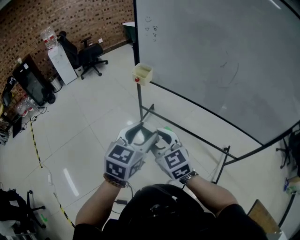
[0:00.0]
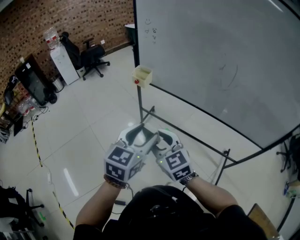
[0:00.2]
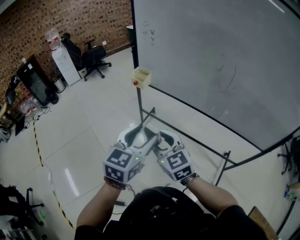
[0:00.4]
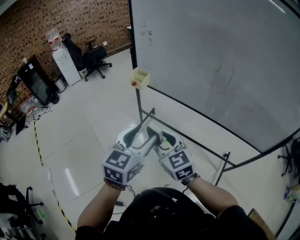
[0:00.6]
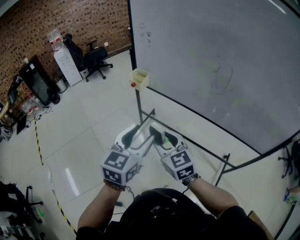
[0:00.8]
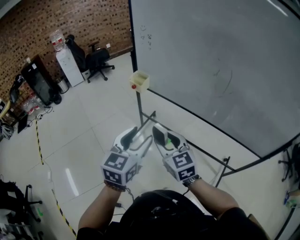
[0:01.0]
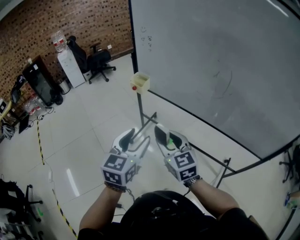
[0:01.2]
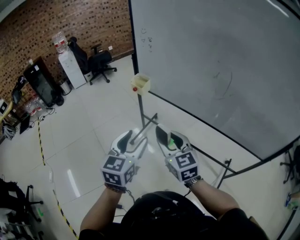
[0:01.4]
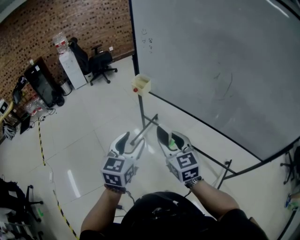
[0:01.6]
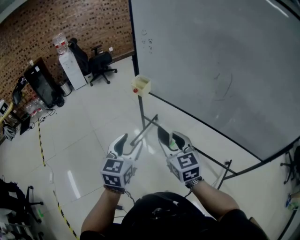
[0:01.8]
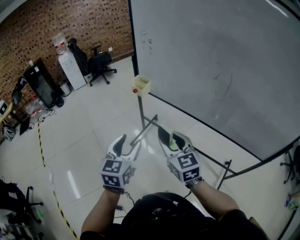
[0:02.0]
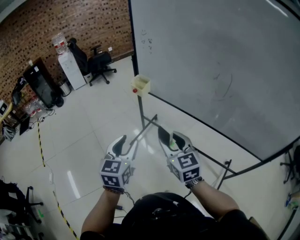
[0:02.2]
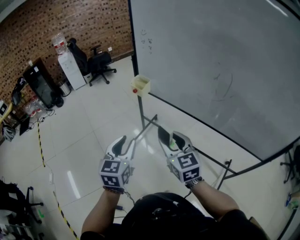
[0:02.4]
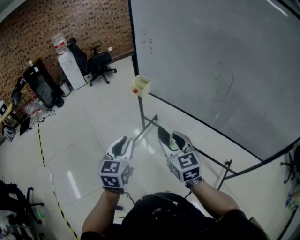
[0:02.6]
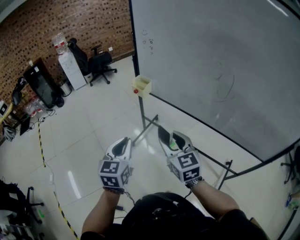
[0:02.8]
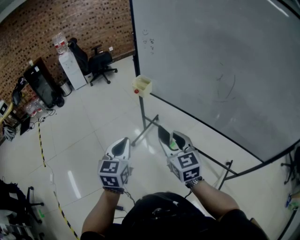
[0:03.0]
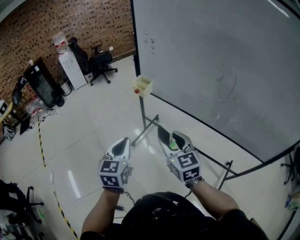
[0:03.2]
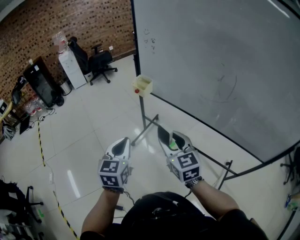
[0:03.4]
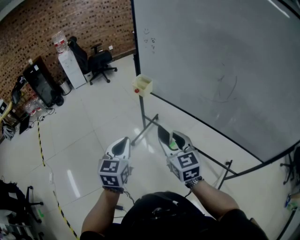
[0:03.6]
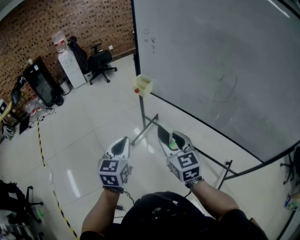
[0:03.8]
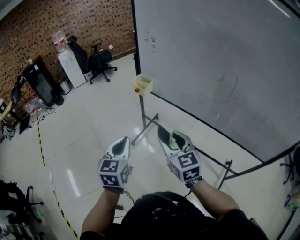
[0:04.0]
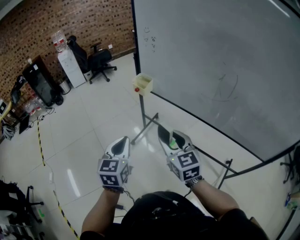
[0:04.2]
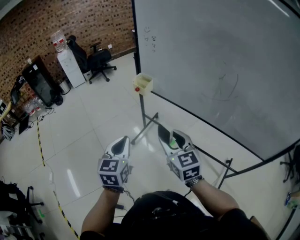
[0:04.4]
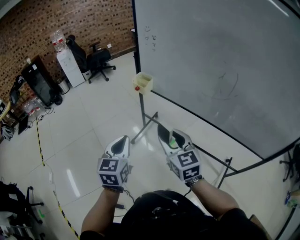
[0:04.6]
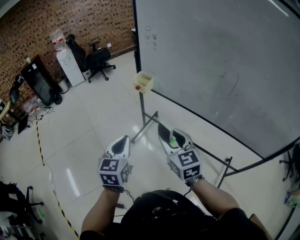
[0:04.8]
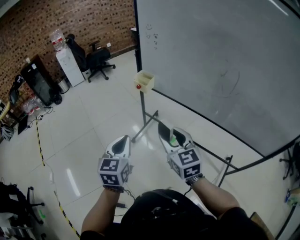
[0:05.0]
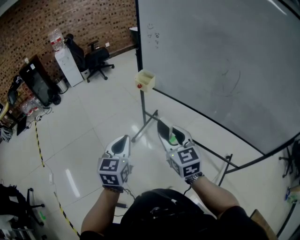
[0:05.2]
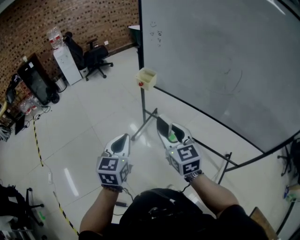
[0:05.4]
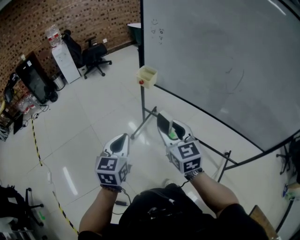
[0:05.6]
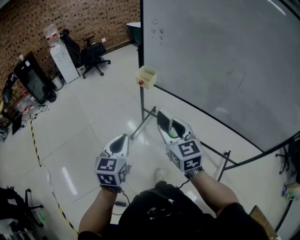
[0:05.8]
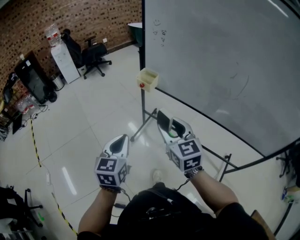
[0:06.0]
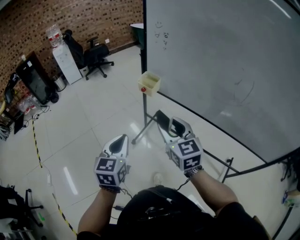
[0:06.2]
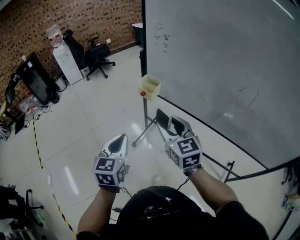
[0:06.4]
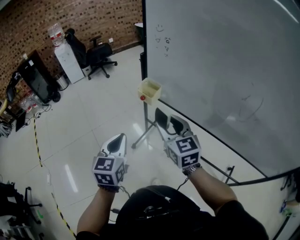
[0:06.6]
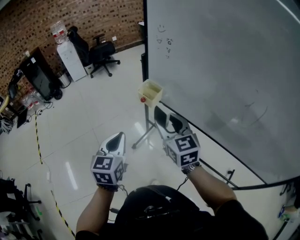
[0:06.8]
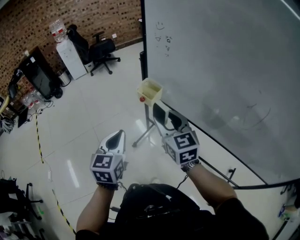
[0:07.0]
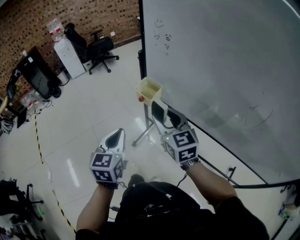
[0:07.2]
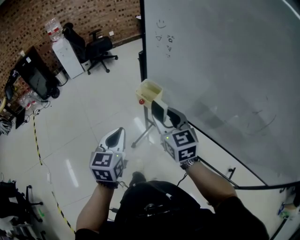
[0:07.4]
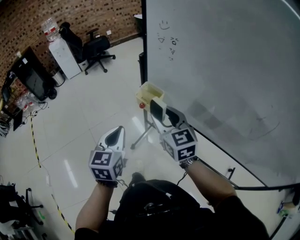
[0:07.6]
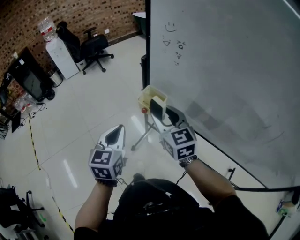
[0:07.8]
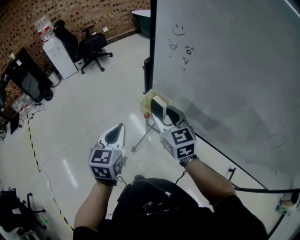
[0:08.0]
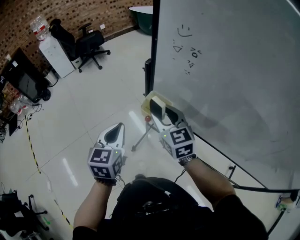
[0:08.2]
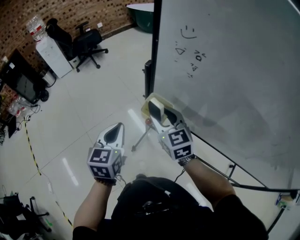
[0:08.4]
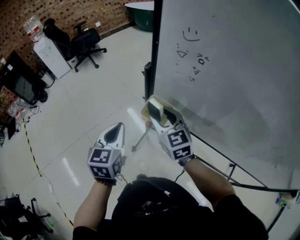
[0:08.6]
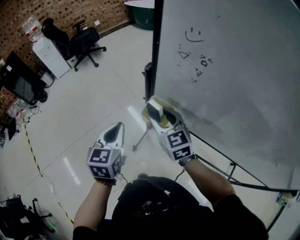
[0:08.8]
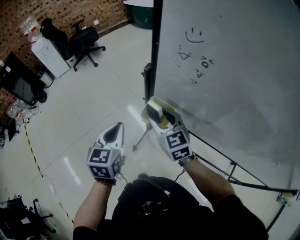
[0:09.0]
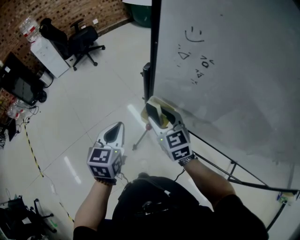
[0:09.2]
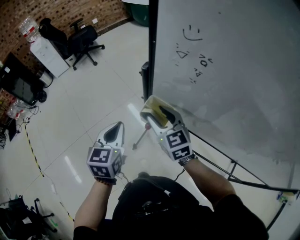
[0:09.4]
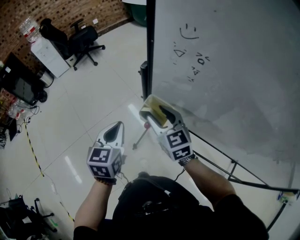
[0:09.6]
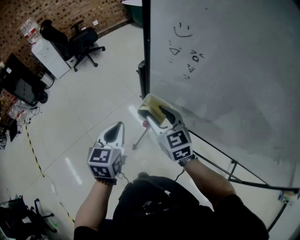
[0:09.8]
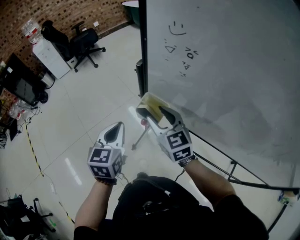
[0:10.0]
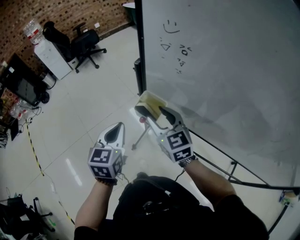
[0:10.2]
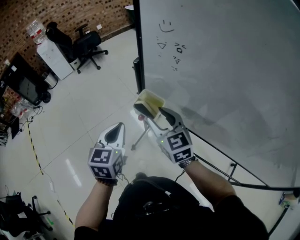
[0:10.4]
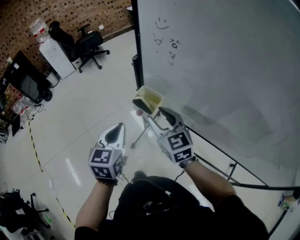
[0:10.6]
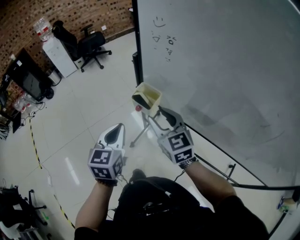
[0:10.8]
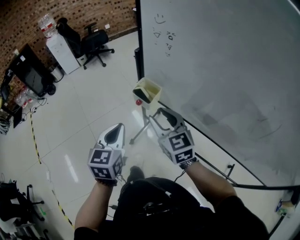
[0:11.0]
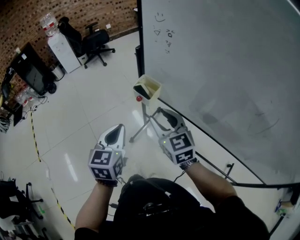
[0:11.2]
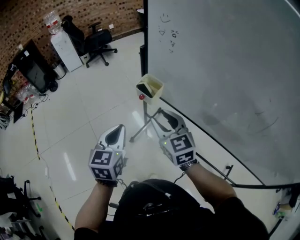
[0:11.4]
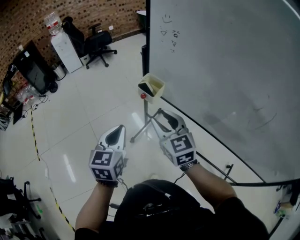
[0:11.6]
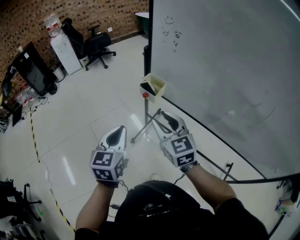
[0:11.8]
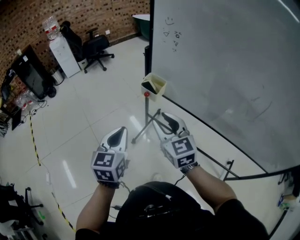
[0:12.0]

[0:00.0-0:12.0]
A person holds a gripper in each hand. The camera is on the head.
0:00.0 to 0:01.6: The right gripper moves to the right, some 10 cm.
0:01.6 to 0:03.0: The left gripper shifts by about 5 cm, and closes its fingers.
0:03.0 to 0:04.4: The grippers stay close to where they were, moving slightly.
0:04.4 to 0:06.0: The left gripper is displaced to the left by some 5 cm; the right gripper shifts approximately 10 cm forward and to the left.
0:06.0 to 0:07.6: Both grippers travel together forward, some 25 cm.
0:07.6 to 0:09.0: The left gripper heads forward, covering roughly 15 cm; the right gripper travels forward and downward by approximately 20 cm.
0:09.0 to 0:10.4: The grippers both shift backward by about 5 cm.
0:10.4 to 0:12.0: Both grippers travel together backward, approximately 20 cm.

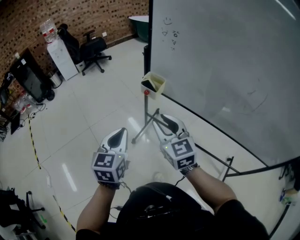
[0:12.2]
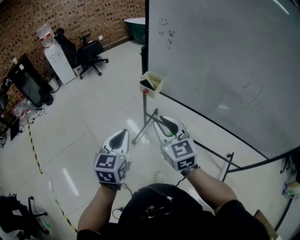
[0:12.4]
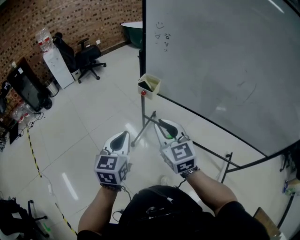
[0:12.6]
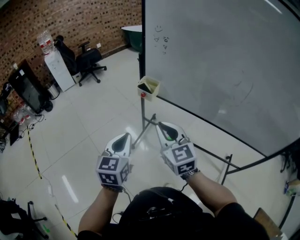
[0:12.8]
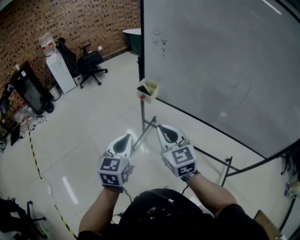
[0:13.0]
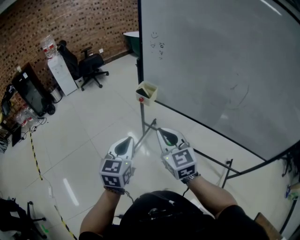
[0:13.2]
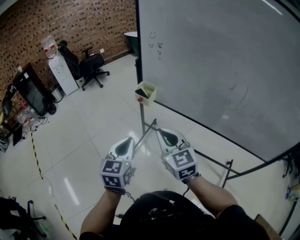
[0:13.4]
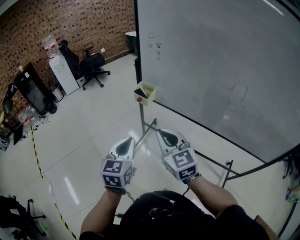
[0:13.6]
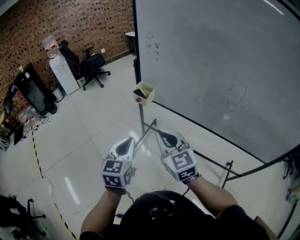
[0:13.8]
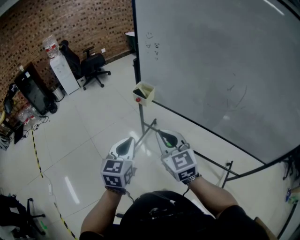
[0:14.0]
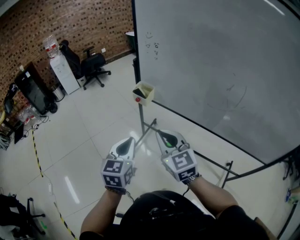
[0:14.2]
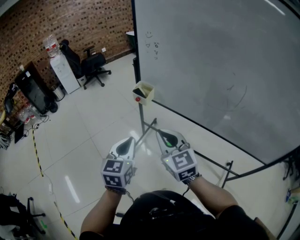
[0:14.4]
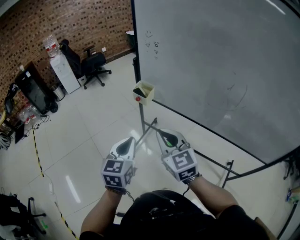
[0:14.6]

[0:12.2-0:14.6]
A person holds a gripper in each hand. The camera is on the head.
0:12.2 to 0:13.4: The left gripper travels backward and to the right by approximately 10 cm, while the right gripper is displaced backward by roughly 10 cm, and closes its fingers.
0:13.4 to 0:14.6: The grippers move only a little.

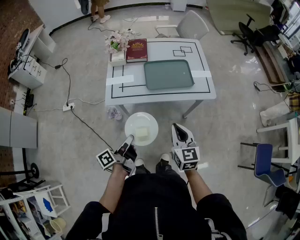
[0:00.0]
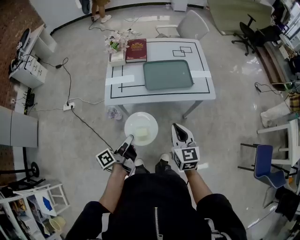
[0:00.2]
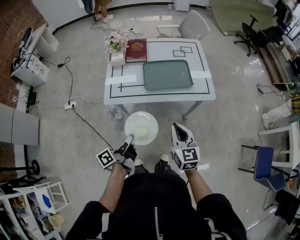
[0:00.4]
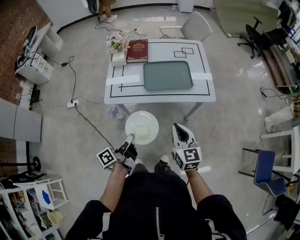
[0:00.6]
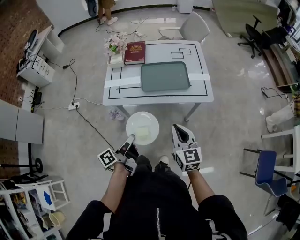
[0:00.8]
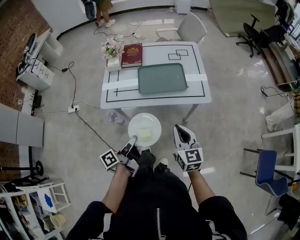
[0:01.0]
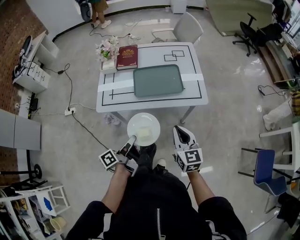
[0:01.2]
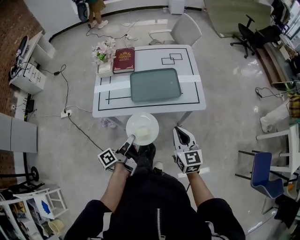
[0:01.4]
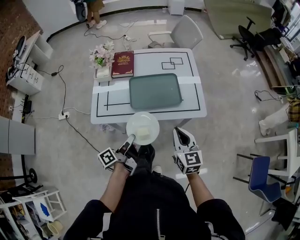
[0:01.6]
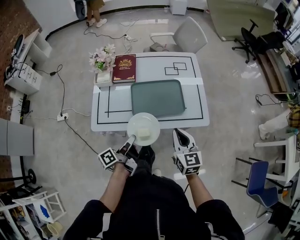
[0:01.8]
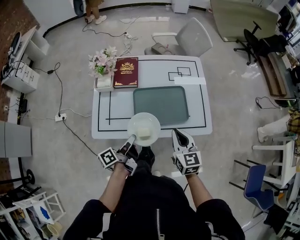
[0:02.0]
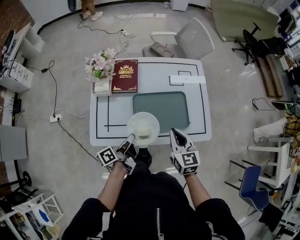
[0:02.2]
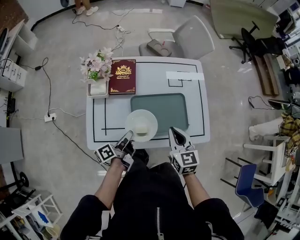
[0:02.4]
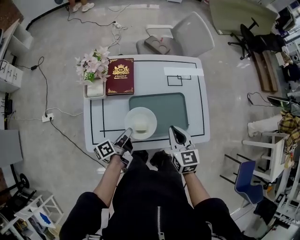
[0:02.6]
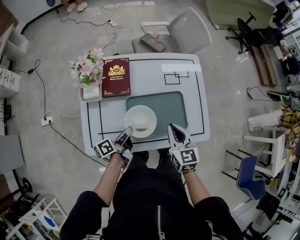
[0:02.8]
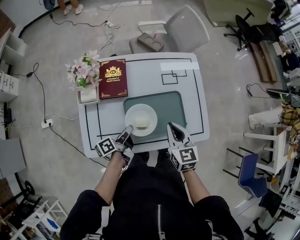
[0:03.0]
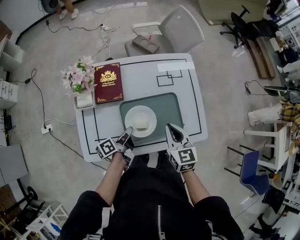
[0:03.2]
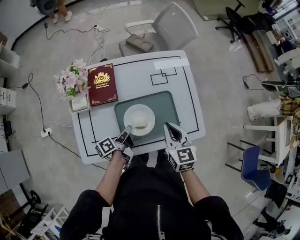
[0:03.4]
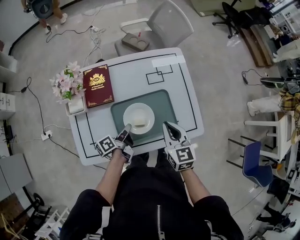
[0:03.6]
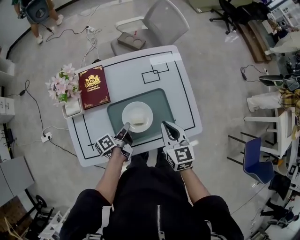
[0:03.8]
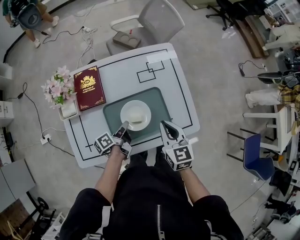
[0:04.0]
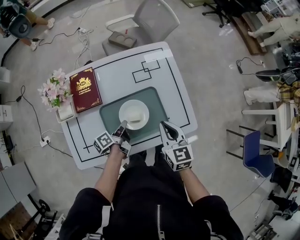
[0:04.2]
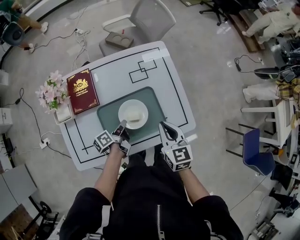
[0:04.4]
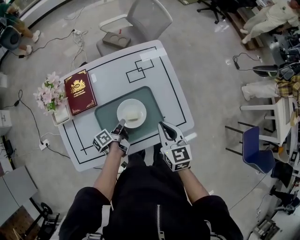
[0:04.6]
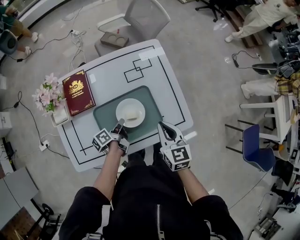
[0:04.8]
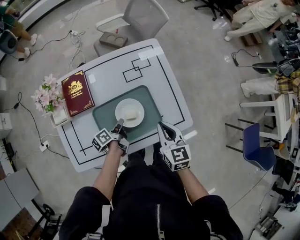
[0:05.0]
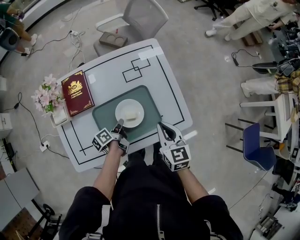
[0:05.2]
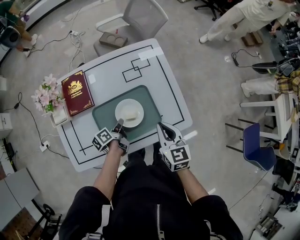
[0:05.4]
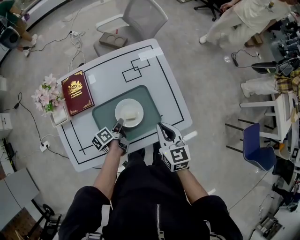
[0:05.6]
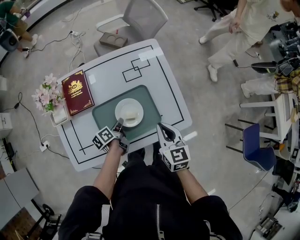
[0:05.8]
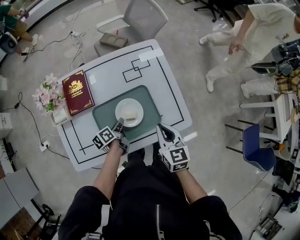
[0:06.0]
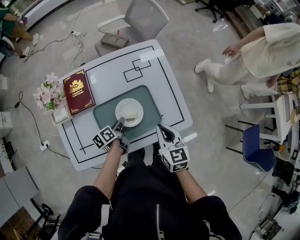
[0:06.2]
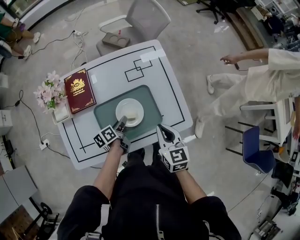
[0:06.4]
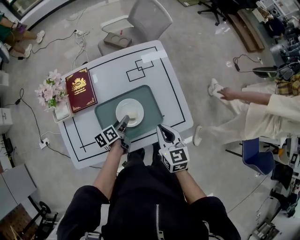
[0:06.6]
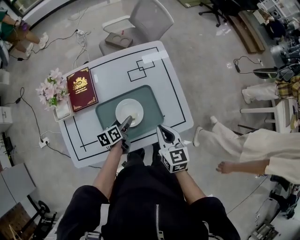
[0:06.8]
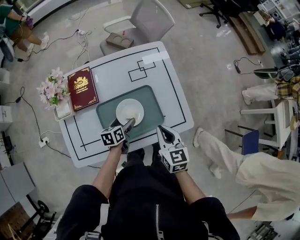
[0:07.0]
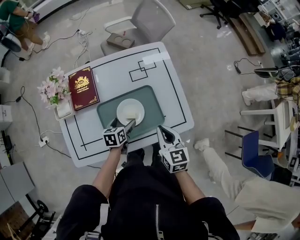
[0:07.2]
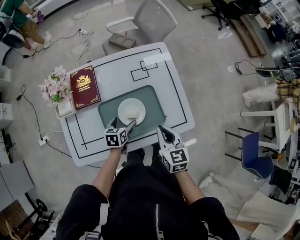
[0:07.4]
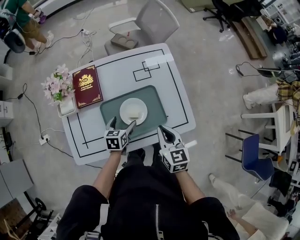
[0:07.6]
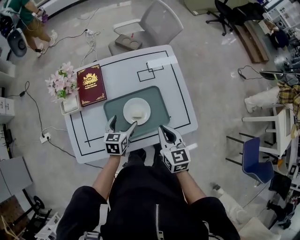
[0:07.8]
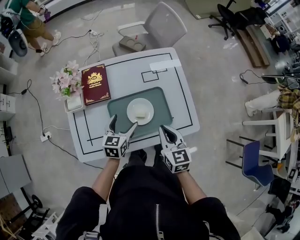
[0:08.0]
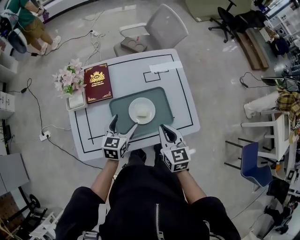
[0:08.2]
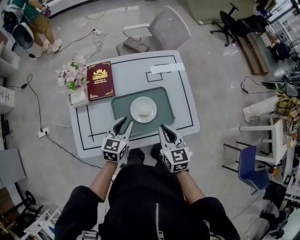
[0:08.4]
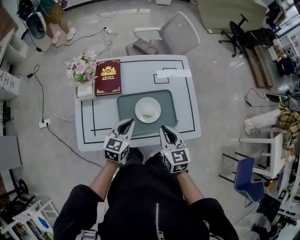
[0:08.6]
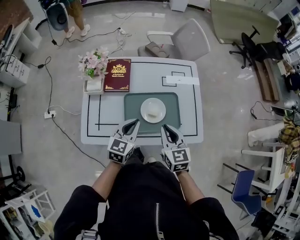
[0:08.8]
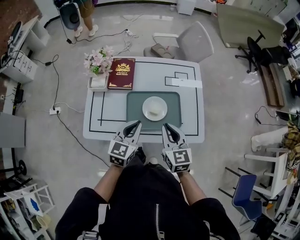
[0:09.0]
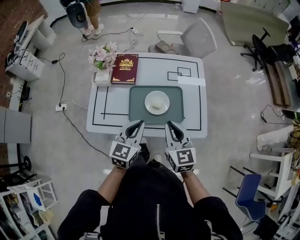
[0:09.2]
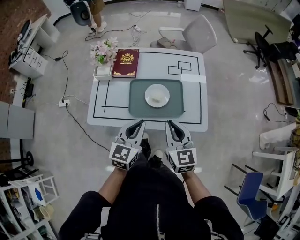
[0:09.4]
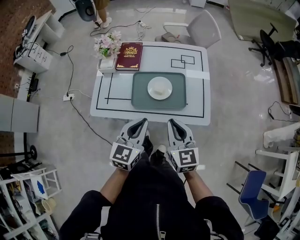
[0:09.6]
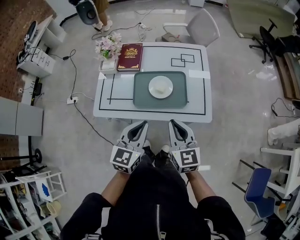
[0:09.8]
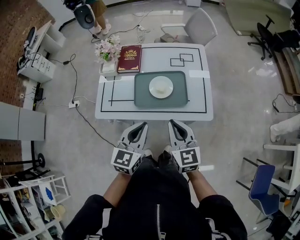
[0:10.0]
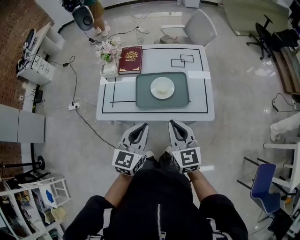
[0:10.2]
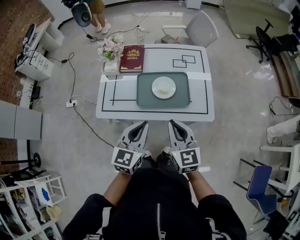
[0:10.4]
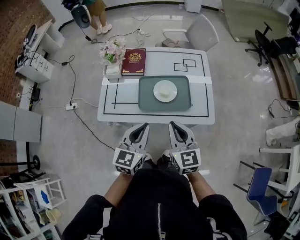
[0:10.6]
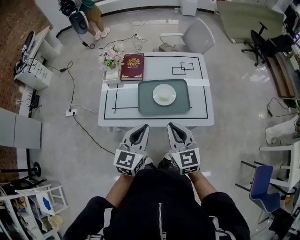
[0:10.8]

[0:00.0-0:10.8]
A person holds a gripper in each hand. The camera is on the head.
0:00.0 to 0:01.6: Both grippers travel together forward and to the right, roughly 15 cm.
0:01.6 to 0:03.0: The two grippers go about 25 cm forward.
0:03.0 to 0:04.6: The left gripper moves to the right, downward and forward, about 15 cm. Meanwhile the right gripper shifts roughly 10 cm to the right.
0:04.6 to 0:06.2: There are only small adjustments of the grippers.
0:06.2 to 0:07.8: The left gripper goes about 5 cm upward, rotates around the line of its fingers by about 50 degrees, clockwise from behind, and opens.
0:07.8 to 0:09.2: The left gripper moves upward and backward, approximately 20 cm, changes its angle by roughly 20 degrees, and closes its fingers. Meanwhile the right gripper travels upward and backward by about 10 cm.
0:09.2 to 0:10.8: The left gripper goes approximately 10 cm backward and upward, while the right gripper moves backward, roughly 10 cm.
